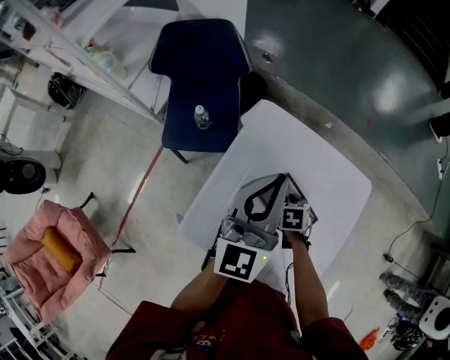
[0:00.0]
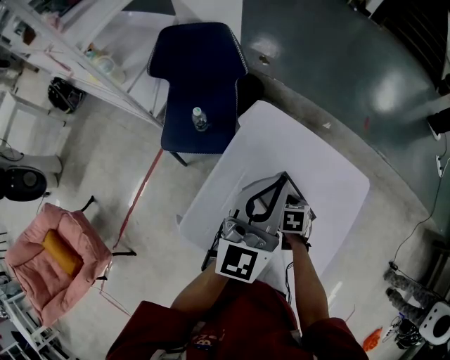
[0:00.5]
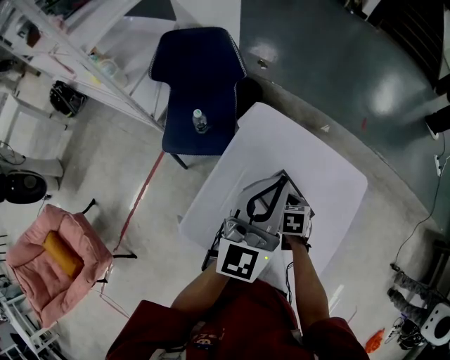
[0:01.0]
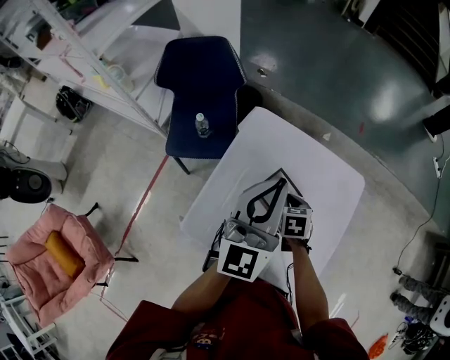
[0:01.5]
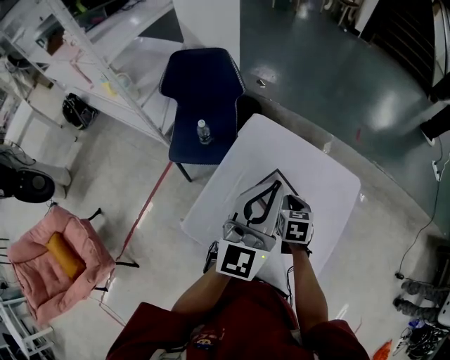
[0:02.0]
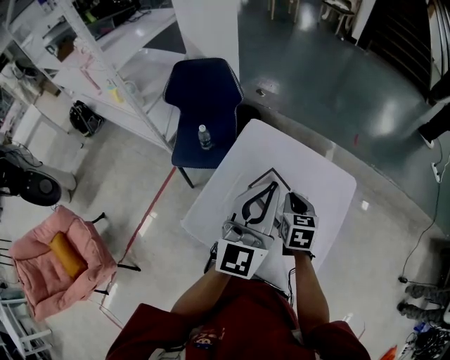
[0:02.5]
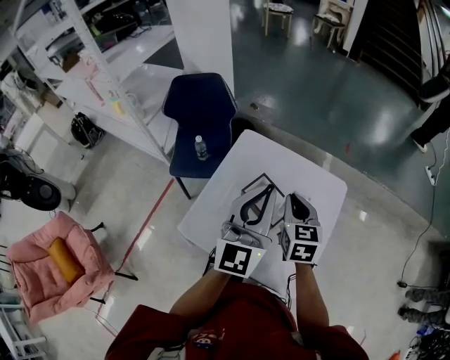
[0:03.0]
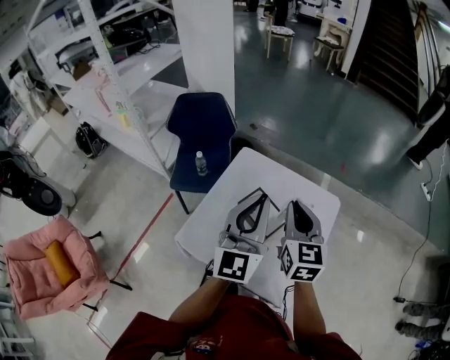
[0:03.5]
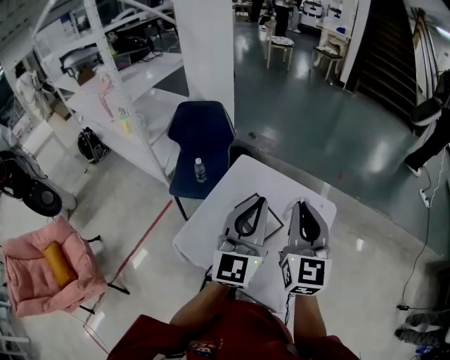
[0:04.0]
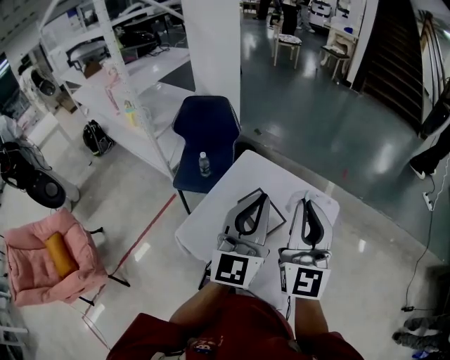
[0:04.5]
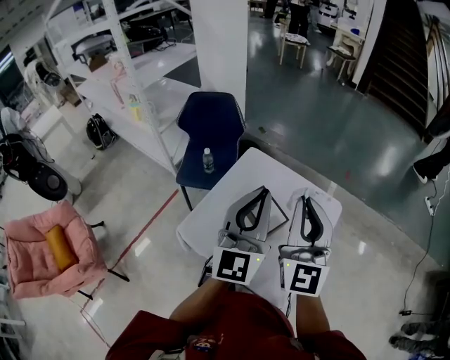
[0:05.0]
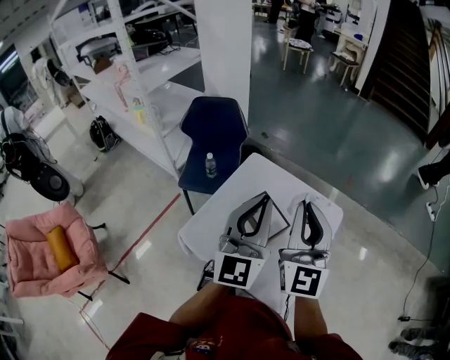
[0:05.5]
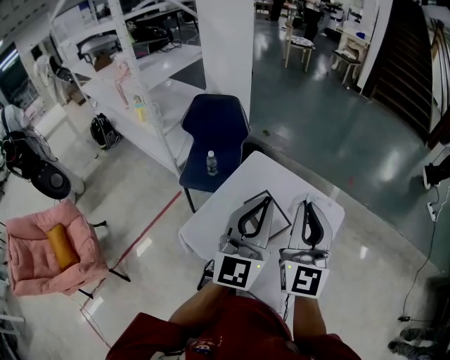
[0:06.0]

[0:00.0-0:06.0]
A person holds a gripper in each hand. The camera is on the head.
0:00.0 to 0:02.0: The left gripper travels backward and upward by roughly 10 cm; the right gripper goes some 10 cm upward, and swivels some 20 degrees.
0:02.0 to 0:04.0: The left gripper heads backward, upward and to the right, covering approximately 15 cm. Meanwhile the right gripper travels upward by approximately 35 cm, and tilts its fingers some 50 degrees upward.
0:04.0 to 0:06.0: There are only small adjustments of the grippers.

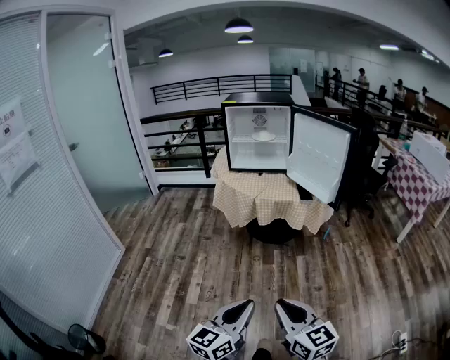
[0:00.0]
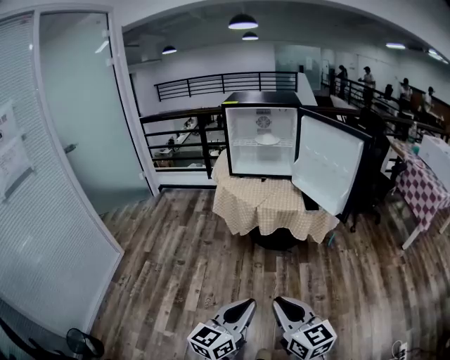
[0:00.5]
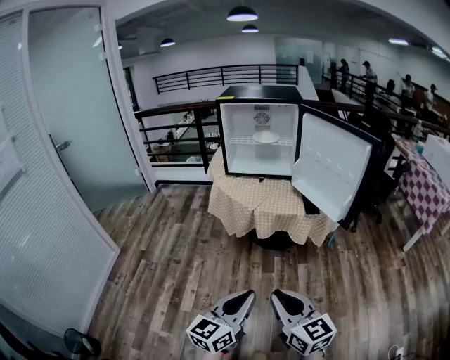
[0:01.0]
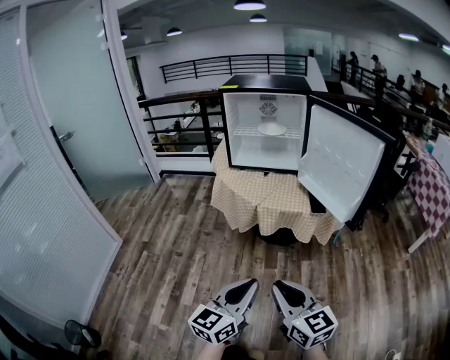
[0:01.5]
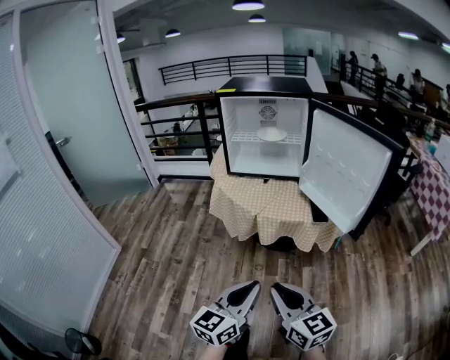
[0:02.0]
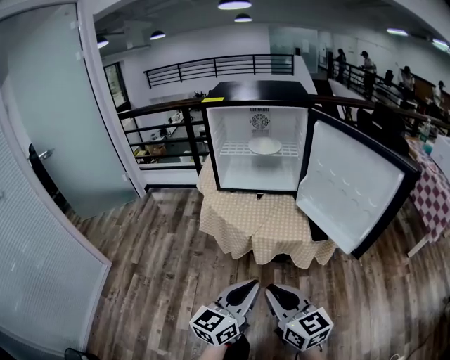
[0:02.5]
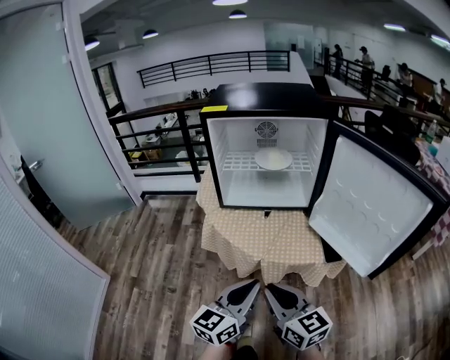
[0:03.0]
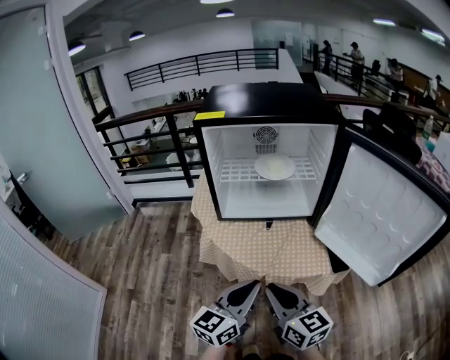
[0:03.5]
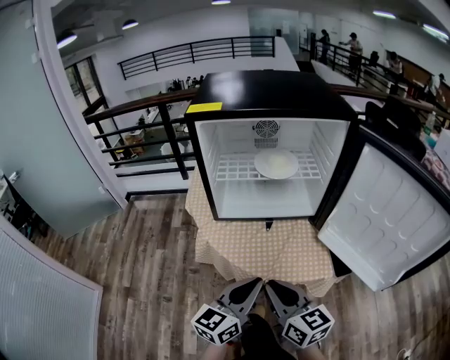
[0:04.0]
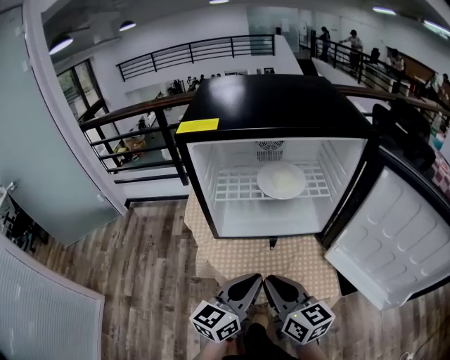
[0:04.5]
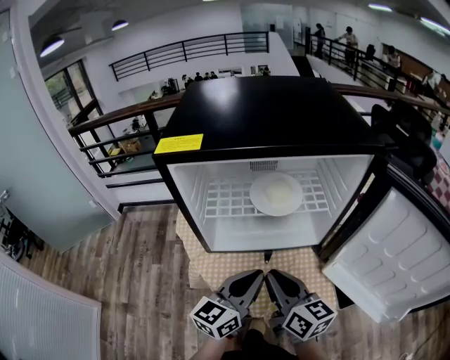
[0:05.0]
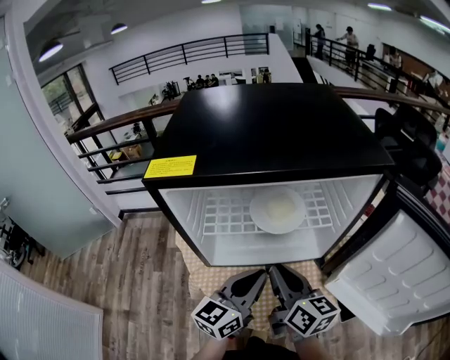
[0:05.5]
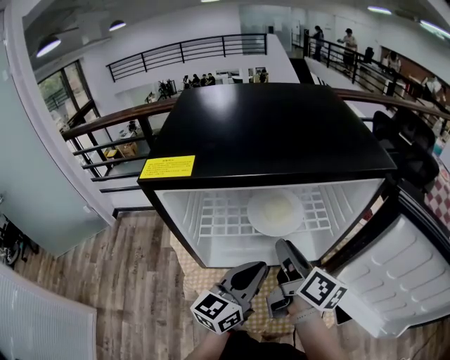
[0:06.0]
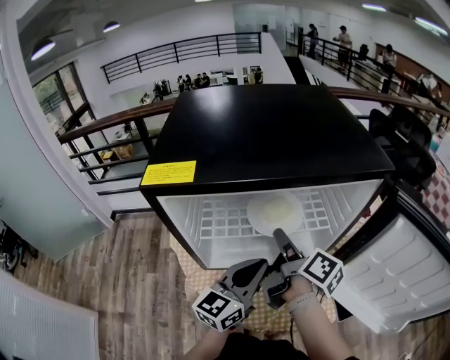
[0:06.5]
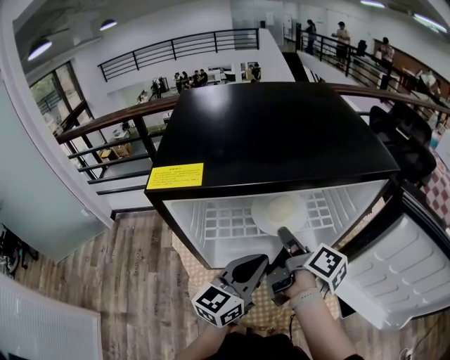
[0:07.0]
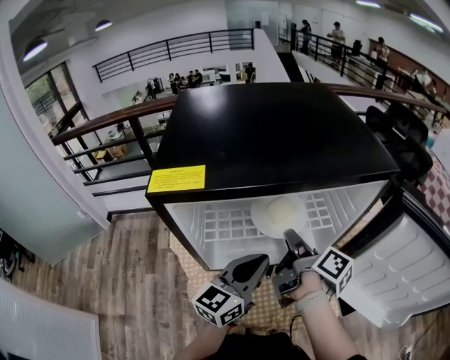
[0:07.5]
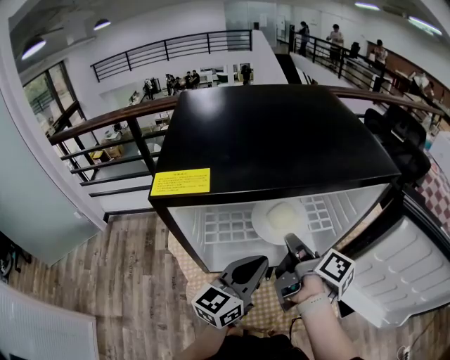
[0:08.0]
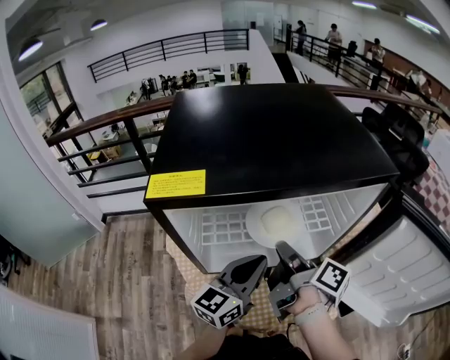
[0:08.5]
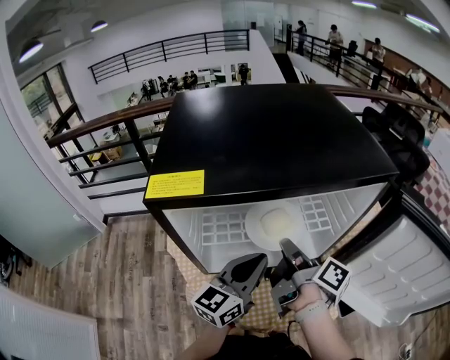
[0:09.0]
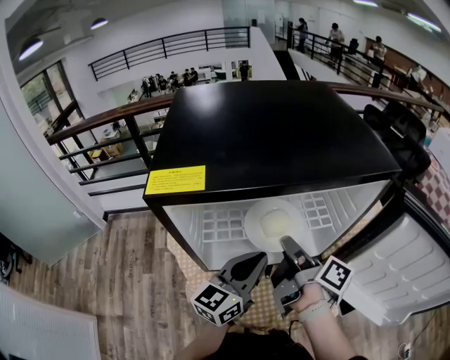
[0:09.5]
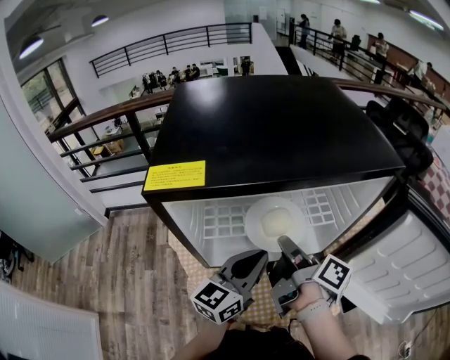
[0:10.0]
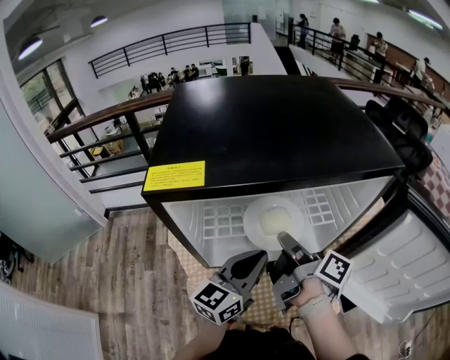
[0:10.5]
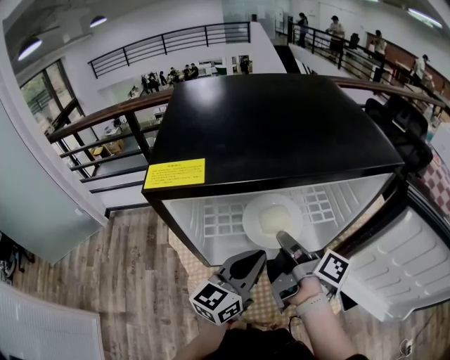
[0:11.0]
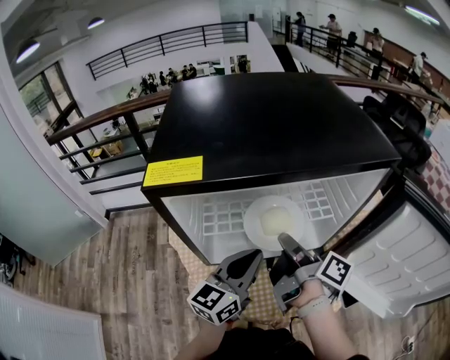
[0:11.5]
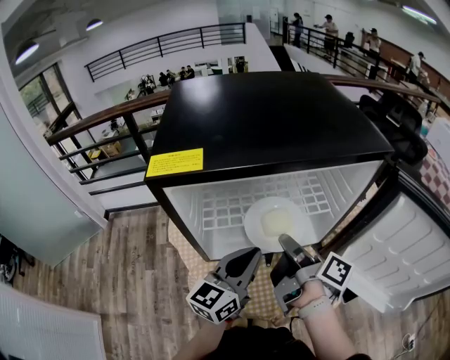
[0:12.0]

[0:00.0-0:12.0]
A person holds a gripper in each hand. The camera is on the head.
0:00.0 to 0:02.0: The grippers both shift forward by about 25 cm.
0:02.0 to 0:04.0: The two grippers go some 35 cm forward.
0:04.0 to 0:06.0: The two grippers go about 25 cm forward. The right gripper rotates roughly 40 degrees.
0:06.0 to 0:08.0: The right gripper changes its angle by about 30 degrees.
0:08.0 to 0:12.0: The grippers move only a little.

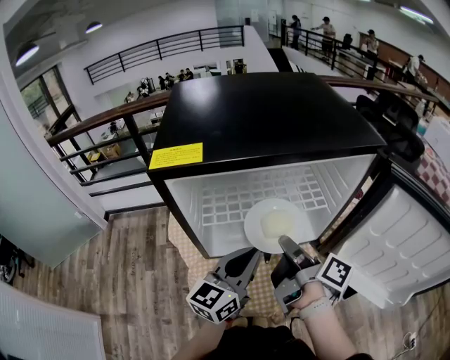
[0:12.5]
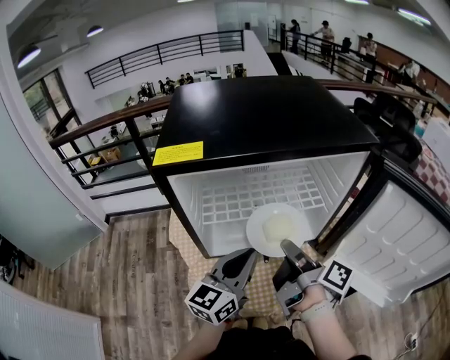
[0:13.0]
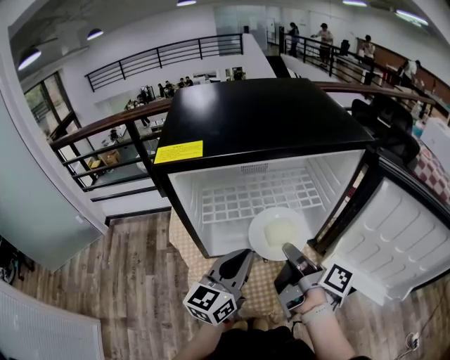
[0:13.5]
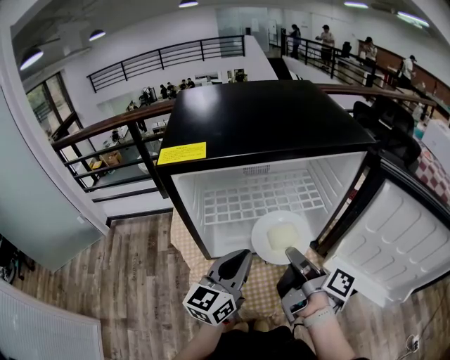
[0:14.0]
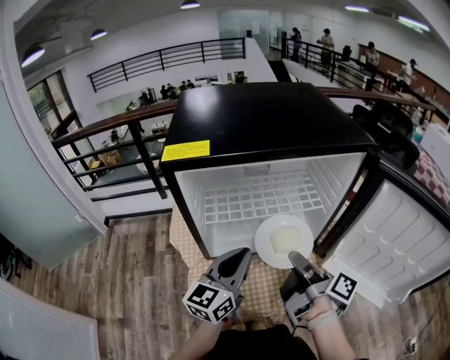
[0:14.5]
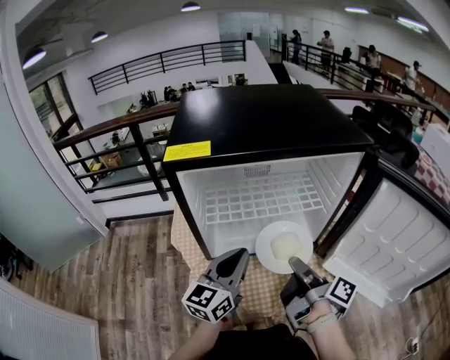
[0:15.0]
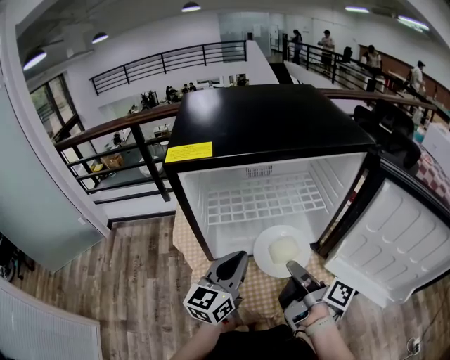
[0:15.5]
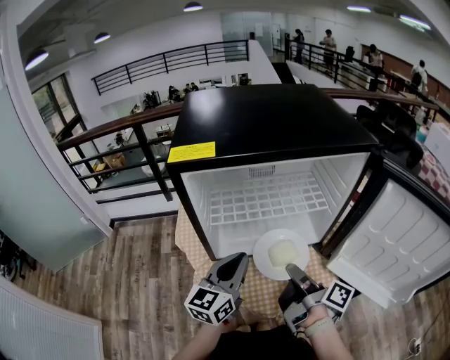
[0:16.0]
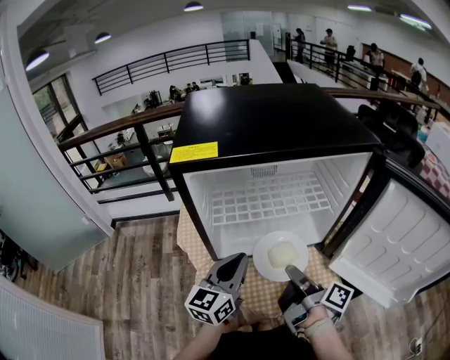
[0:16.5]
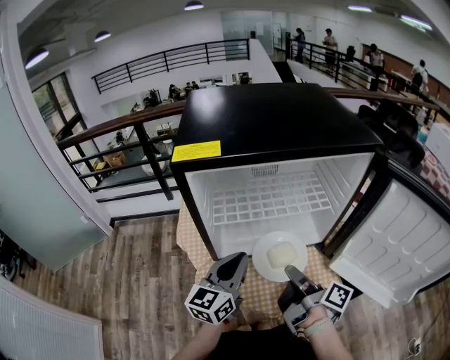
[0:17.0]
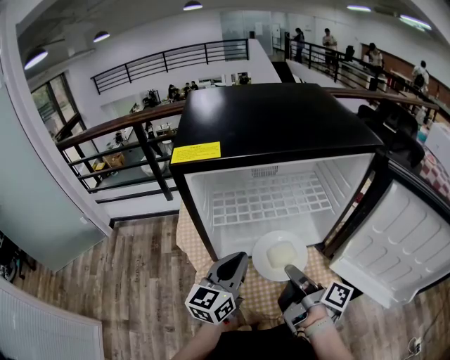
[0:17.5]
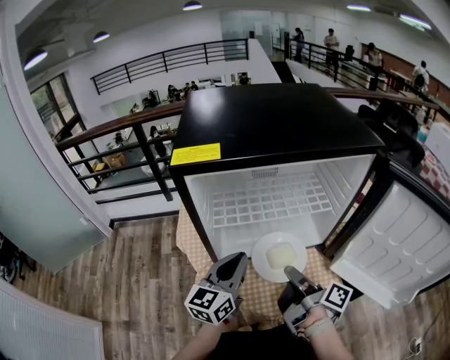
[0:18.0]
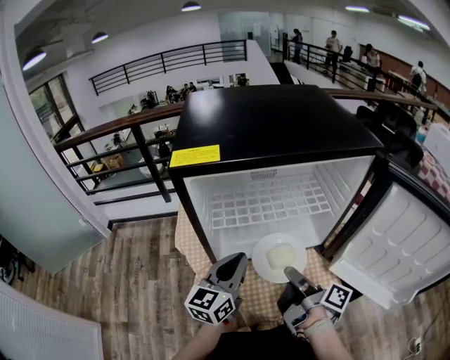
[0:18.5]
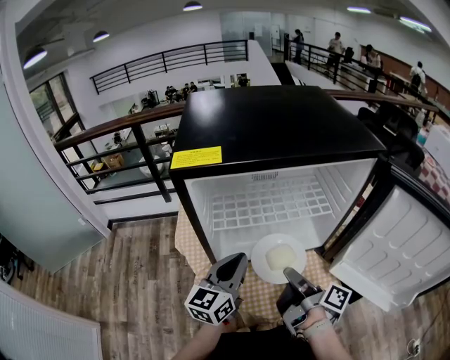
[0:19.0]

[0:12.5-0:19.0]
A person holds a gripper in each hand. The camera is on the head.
0:12.5 to 0:14.5: The right gripper shifts by approximately 5 cm.
0:14.5 to 0:17.0: The right gripper moves roughly 5 cm.
0:17.0 to 0:19.0: There are only small adjustments of the grippers.

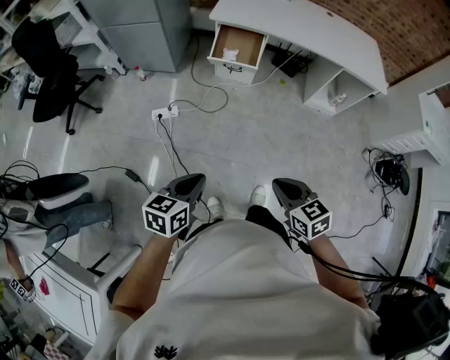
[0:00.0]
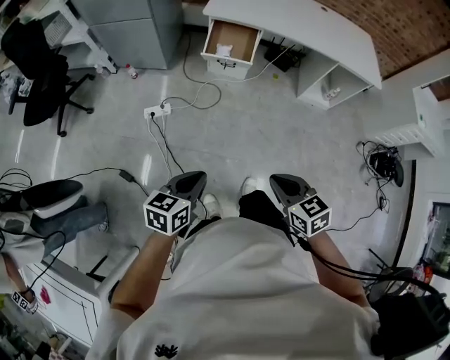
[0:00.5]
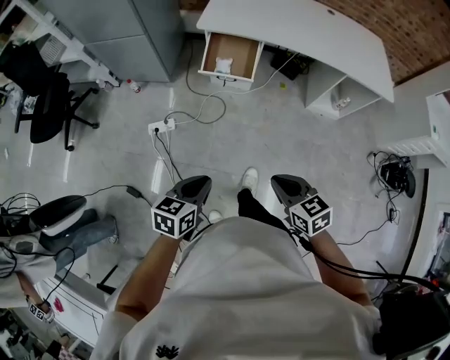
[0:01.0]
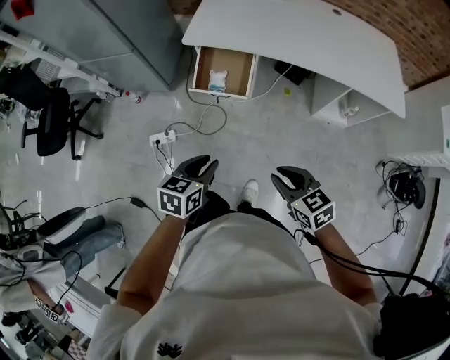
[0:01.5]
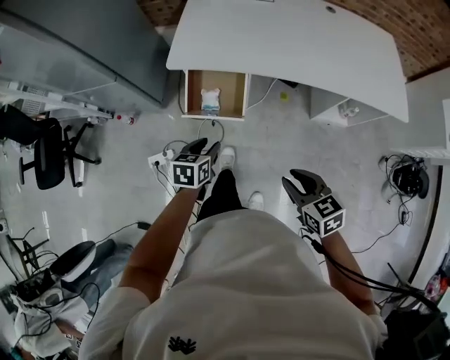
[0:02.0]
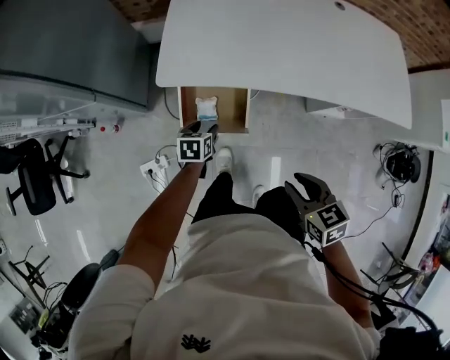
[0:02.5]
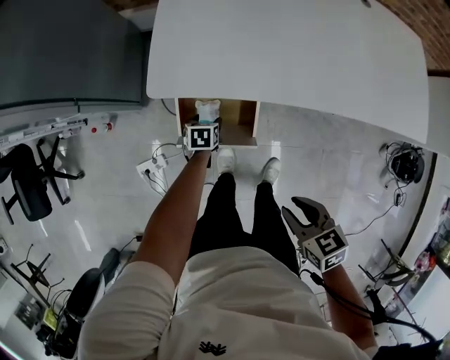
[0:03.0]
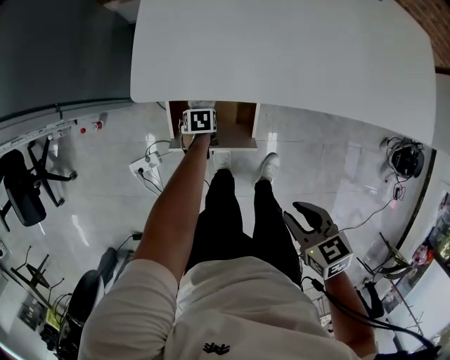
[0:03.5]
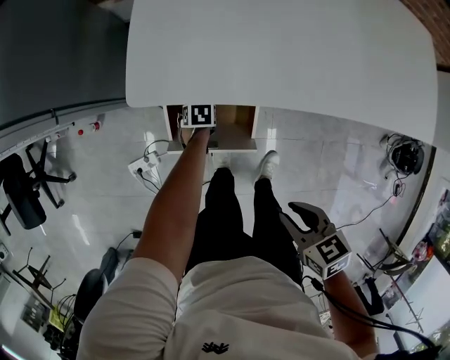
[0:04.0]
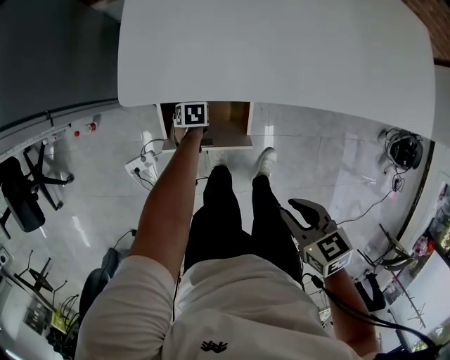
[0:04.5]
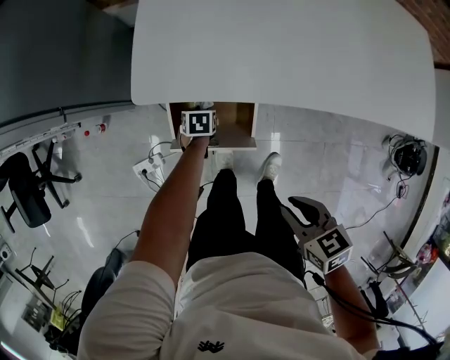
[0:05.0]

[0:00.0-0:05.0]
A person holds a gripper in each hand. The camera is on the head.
0:00.0 to 0:02.5: The two grippers travel together, forward, roughly 70 cm. The left gripper rotates some 20 degrees, and opens its fingers. Meanwhile the right gripper opens up.
0:02.5 to 0:05.0: The left gripper goes some 25 cm downward. Meanwhile the right gripper shifts approximately 10 cm downward.
